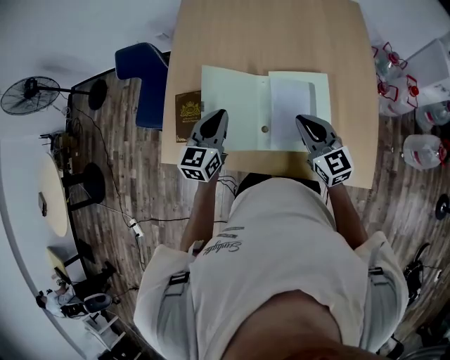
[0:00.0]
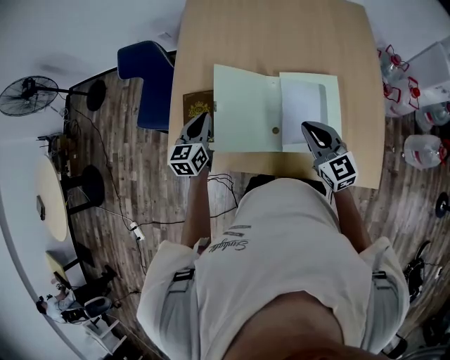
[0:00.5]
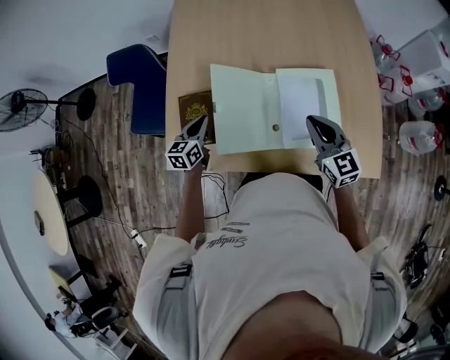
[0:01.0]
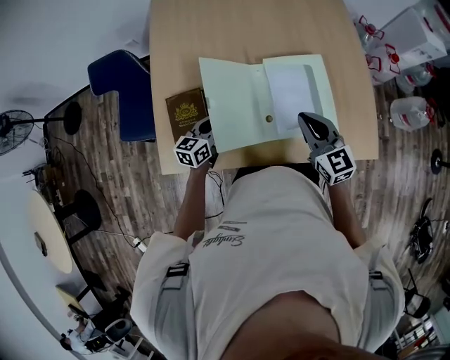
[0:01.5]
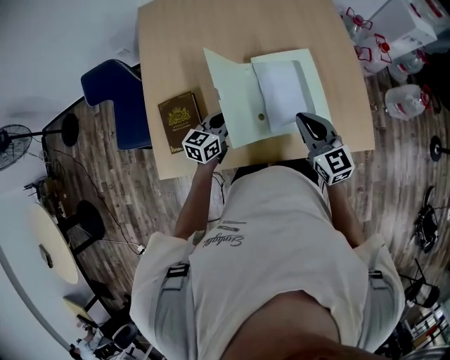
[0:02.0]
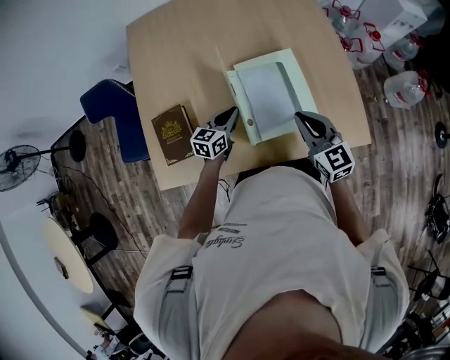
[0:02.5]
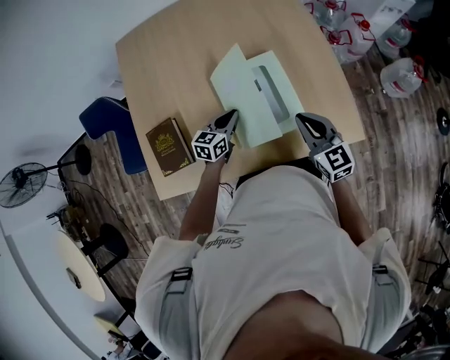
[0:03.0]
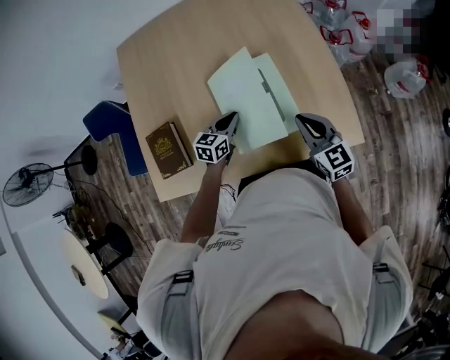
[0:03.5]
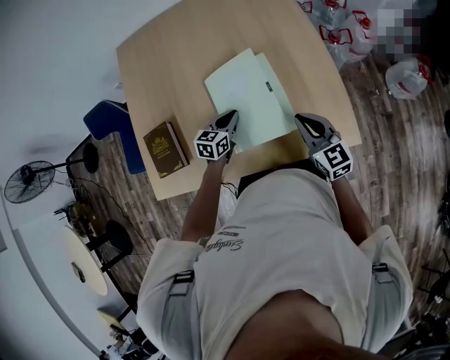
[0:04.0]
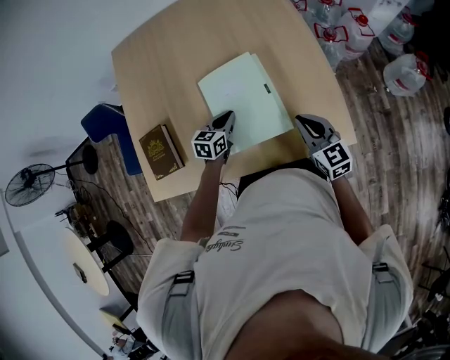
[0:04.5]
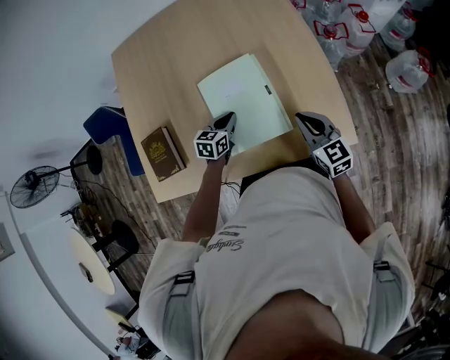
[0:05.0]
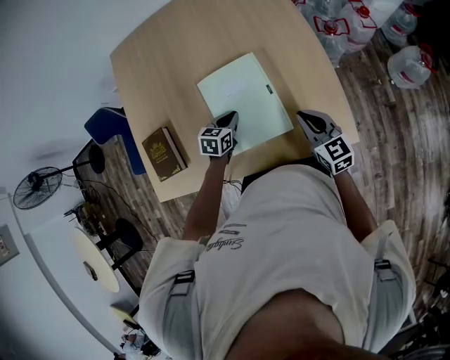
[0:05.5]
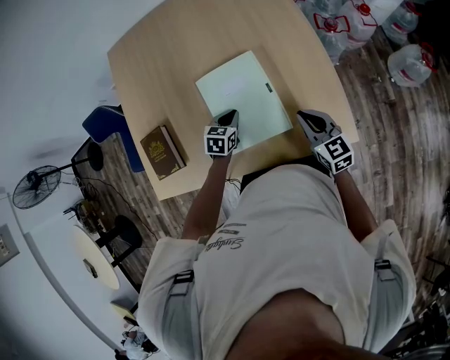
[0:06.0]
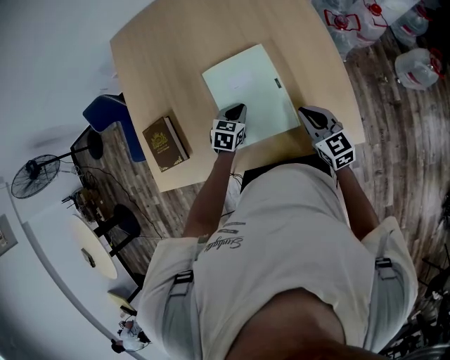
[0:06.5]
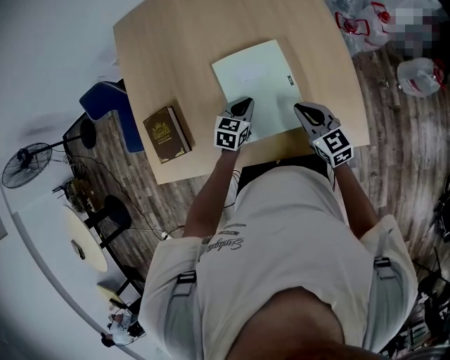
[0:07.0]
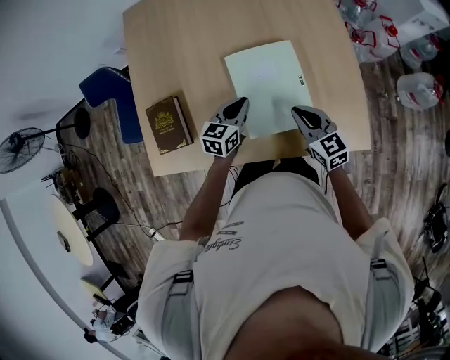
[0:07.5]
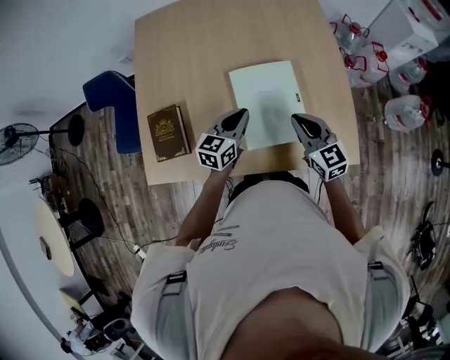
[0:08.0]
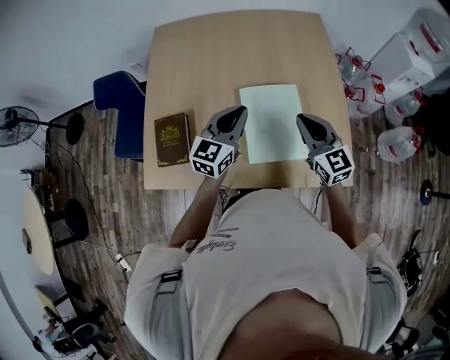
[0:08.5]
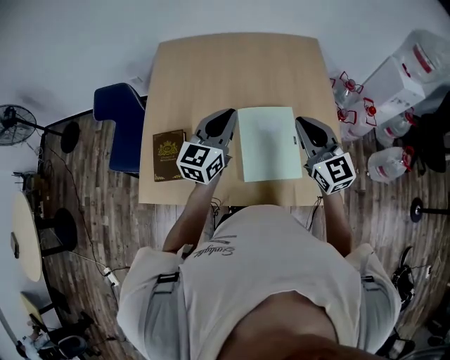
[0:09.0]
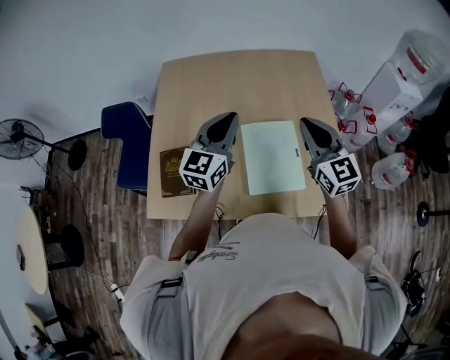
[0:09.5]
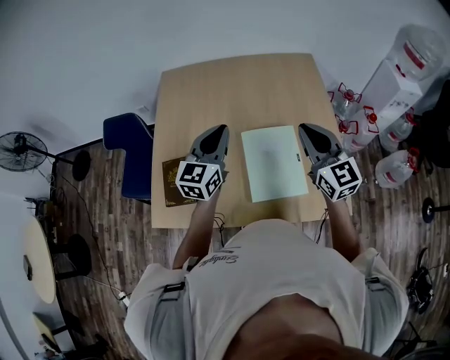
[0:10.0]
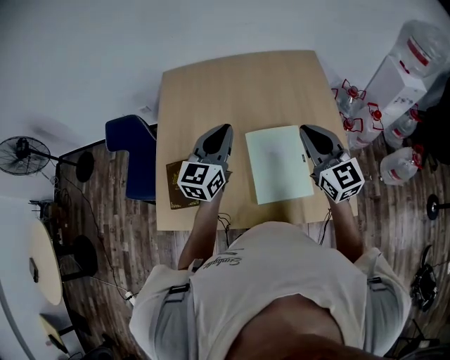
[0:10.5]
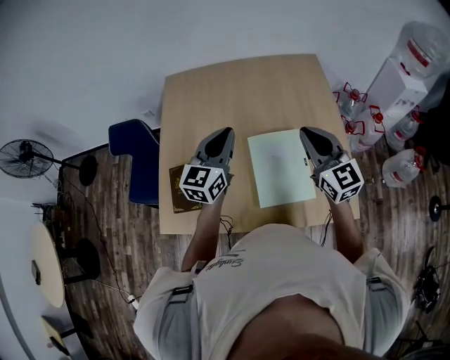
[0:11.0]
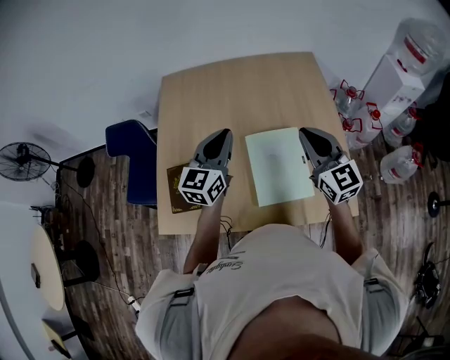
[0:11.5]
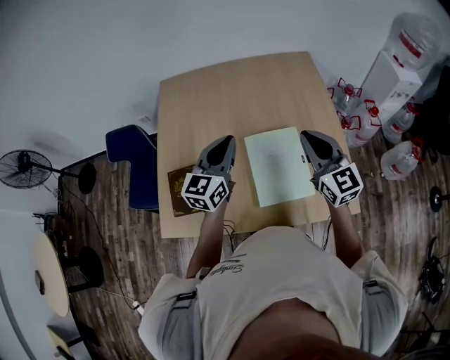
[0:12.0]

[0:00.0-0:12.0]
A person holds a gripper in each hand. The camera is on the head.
0:00.0 to 0:02.0: The right gripper ends up roughly 5 cm from where it was, while the left gripper shifts about 15 cm downward, and swivels approximately 30 degrees.
0:02.0 to 0:04.0: Both grippers move to the right, about 15 cm.
0:04.0 to 0:06.0: The right gripper ends up approximately 5 cm from where it was. The left gripper shifts by roughly 5 cm.
0:06.0 to 0:08.0: The right gripper is displaced to the left and upward by some 15 cm; the left gripper shifts about 15 cm upward, and tips its fingers upward by about 30 degrees.
0:08.0 to 0:10.0: The two grippers go roughly 20 cm upward. The left gripper turns by roughly 20 degrees.
0:10.0 to 0:12.0: The grippers move only a little.

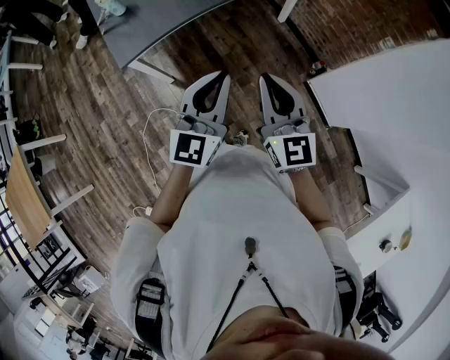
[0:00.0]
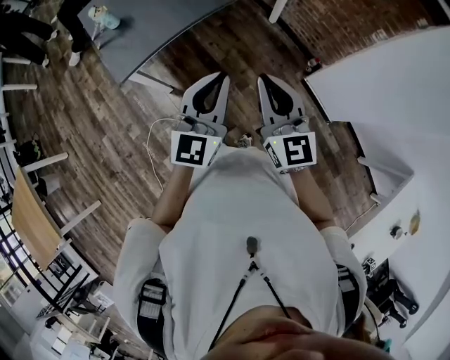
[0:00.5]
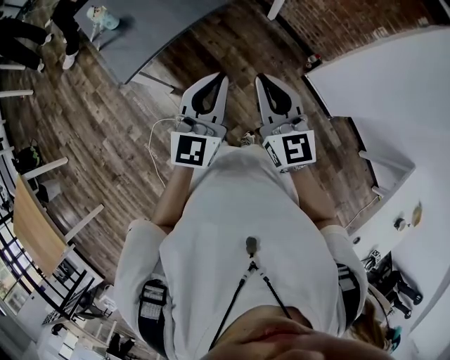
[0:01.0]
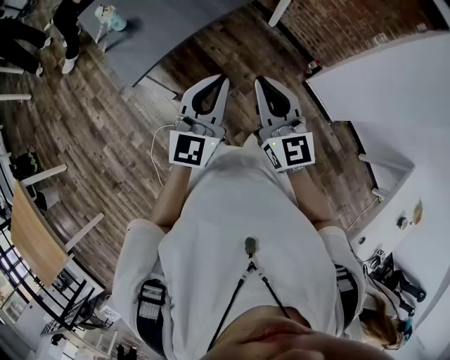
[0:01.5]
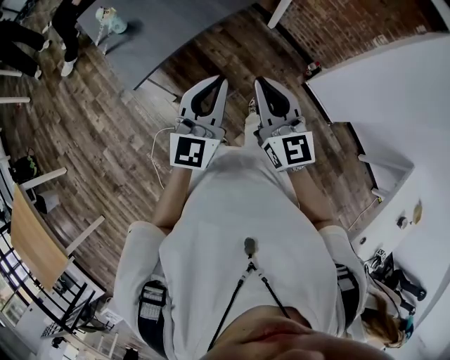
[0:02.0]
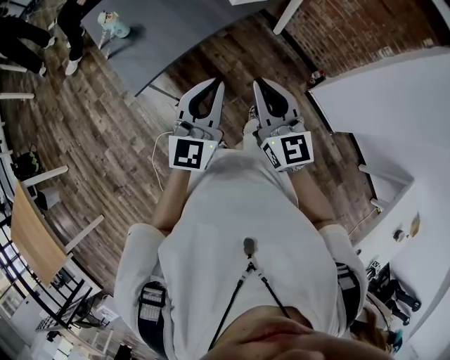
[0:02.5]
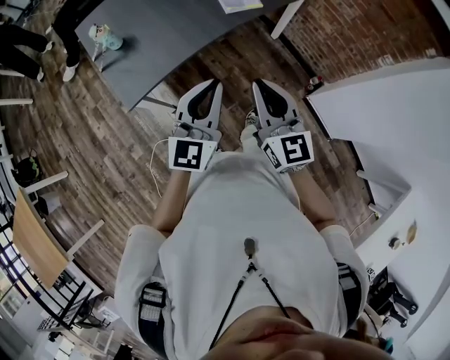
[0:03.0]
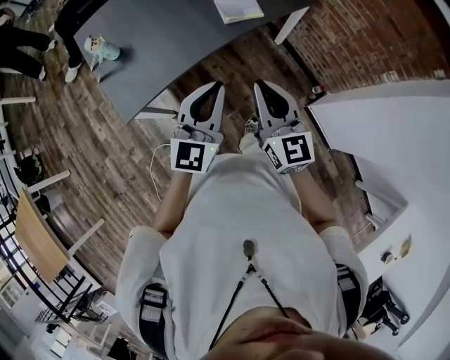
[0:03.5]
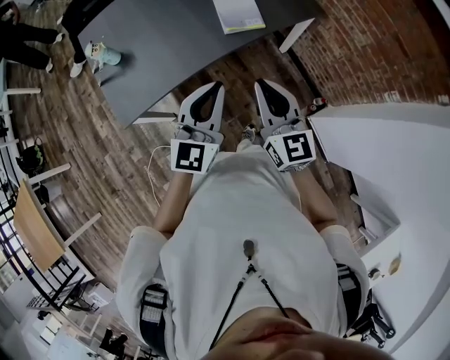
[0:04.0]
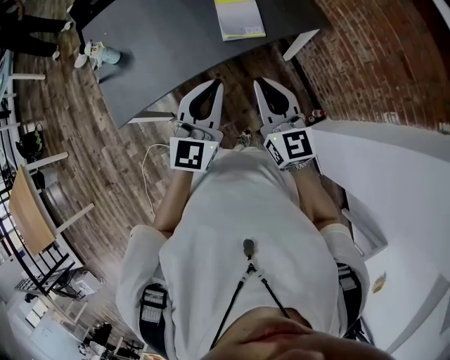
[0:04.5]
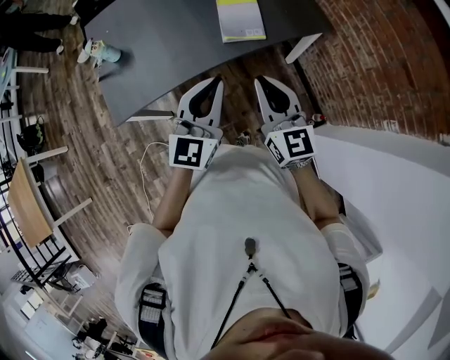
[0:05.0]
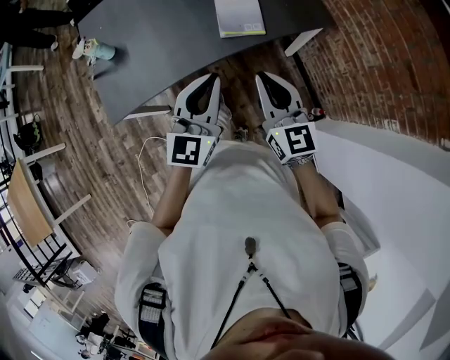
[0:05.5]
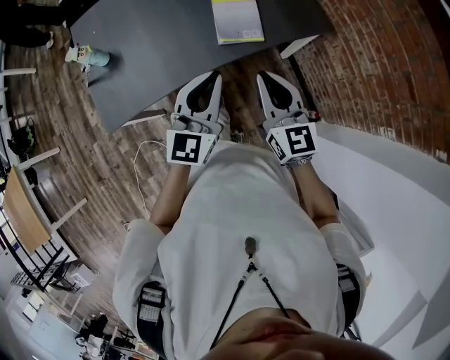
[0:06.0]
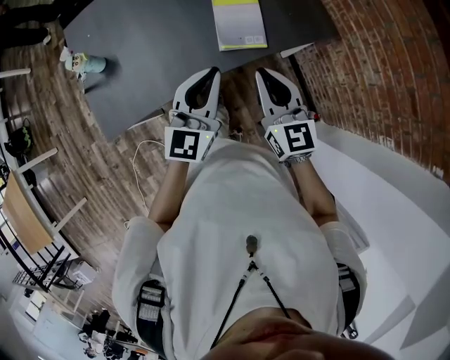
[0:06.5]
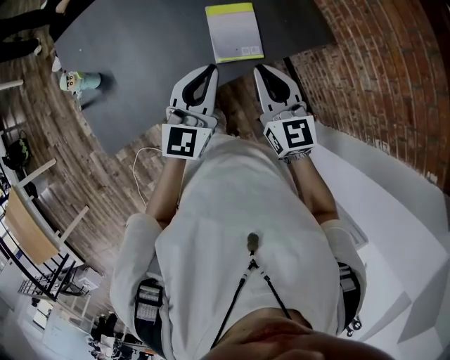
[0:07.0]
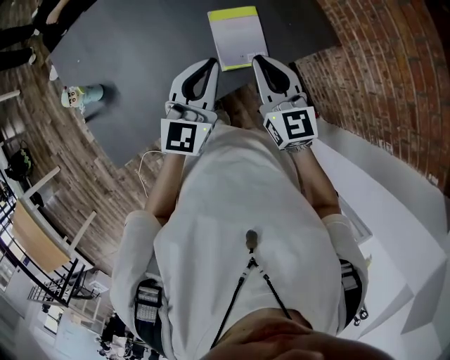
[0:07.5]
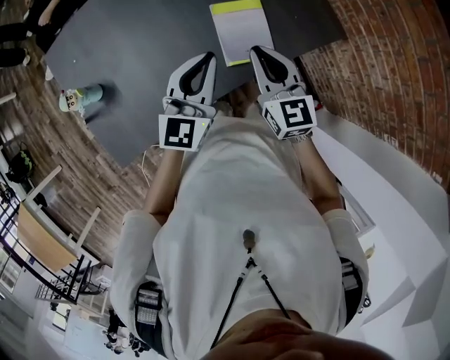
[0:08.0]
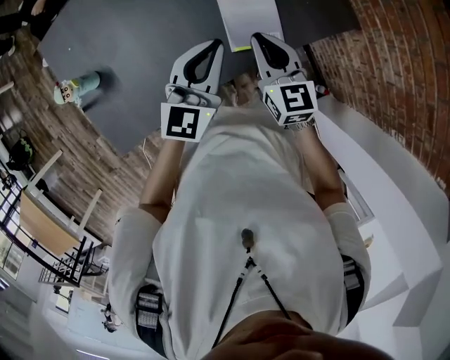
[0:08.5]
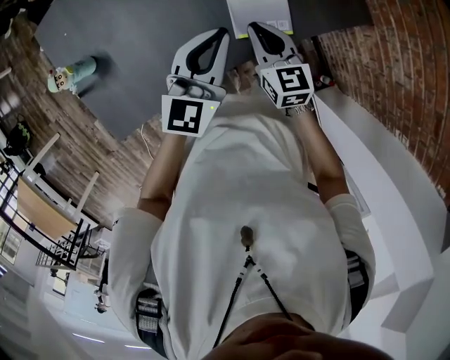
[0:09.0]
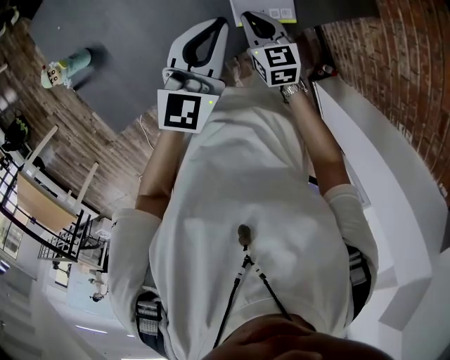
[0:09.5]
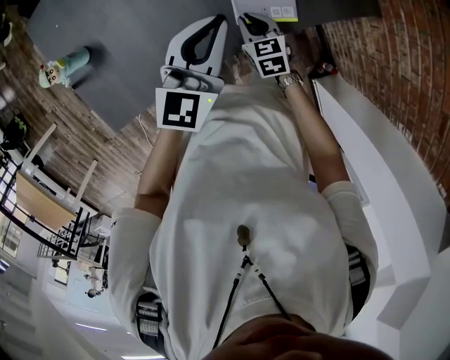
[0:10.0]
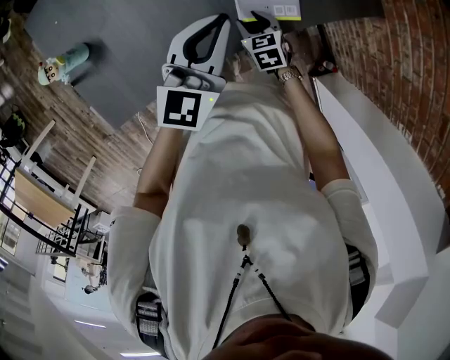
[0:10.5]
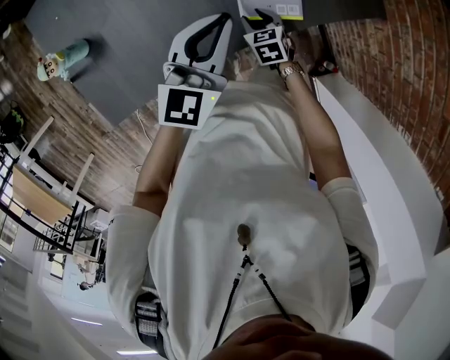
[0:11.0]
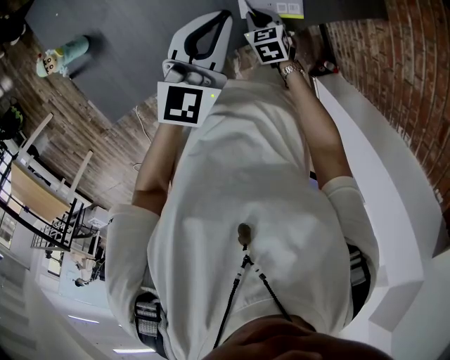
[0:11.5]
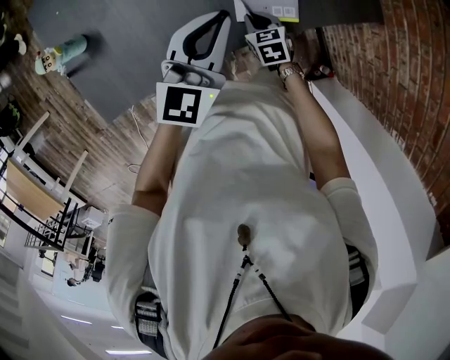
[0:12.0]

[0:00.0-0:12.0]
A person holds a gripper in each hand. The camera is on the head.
0:00.0 to 0:02.0: Both grippers travel together to the left, some 20 cm.
0:02.0 to 0:04.0: Both grippers travel together forward and to the right, about 35 cm.
0:04.0 to 0:06.0: Both grippers move forward and to the right, some 20 cm.
0:06.0 to 0:08.0: The grippers both shift forward by approximately 25 cm.
0:08.0 to 0:10.0: The left gripper travels downward by roughly 5 cm, while the right gripper travels downward by about 25 cm, and changes its angle by approximately 30 degrees.
0:10.0 to 0:12.0: The right gripper changes place by roughly 5 cm, and opens and closes again.

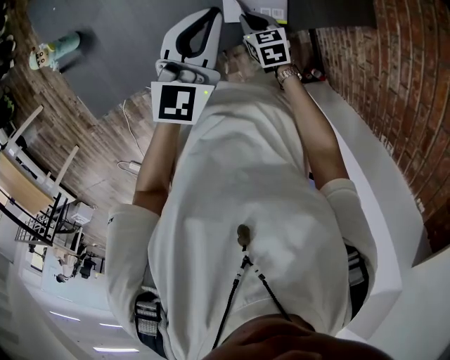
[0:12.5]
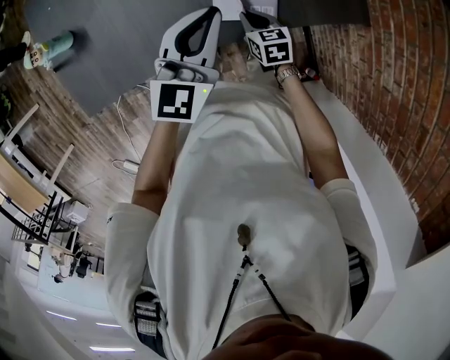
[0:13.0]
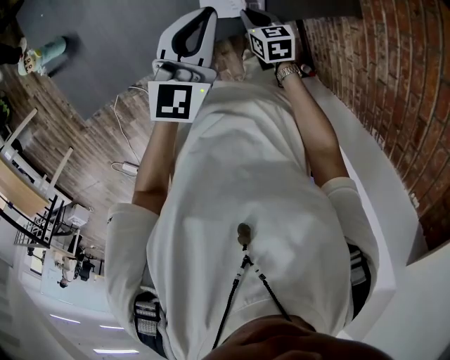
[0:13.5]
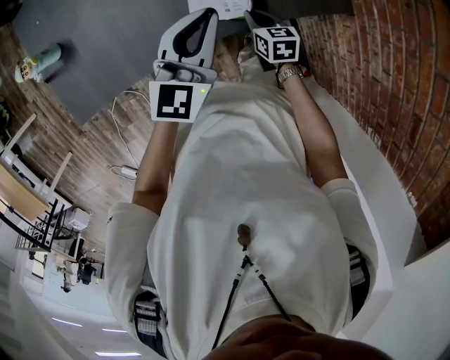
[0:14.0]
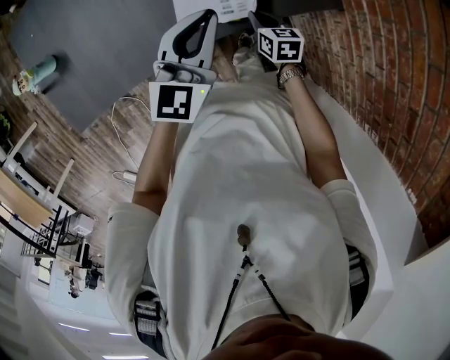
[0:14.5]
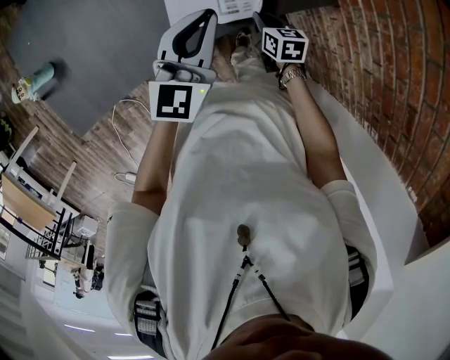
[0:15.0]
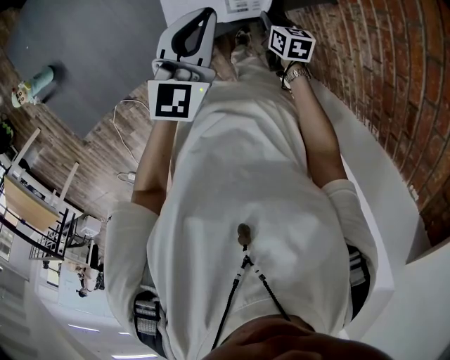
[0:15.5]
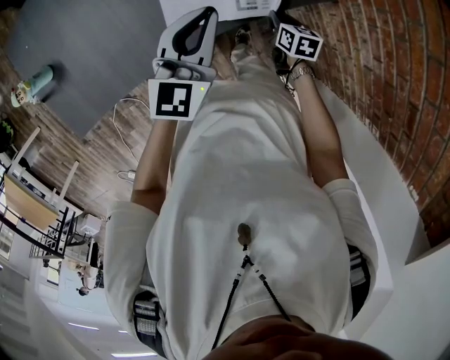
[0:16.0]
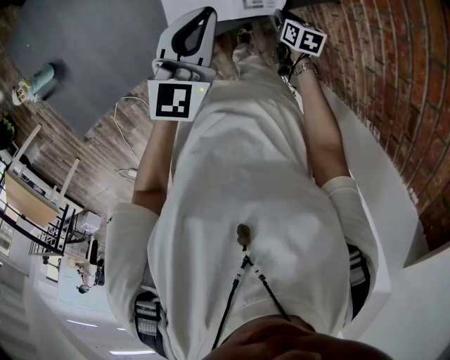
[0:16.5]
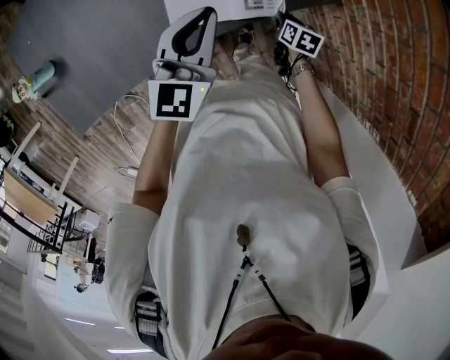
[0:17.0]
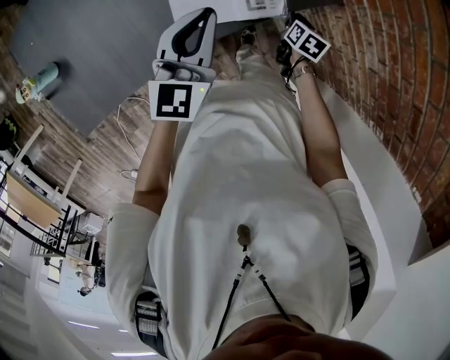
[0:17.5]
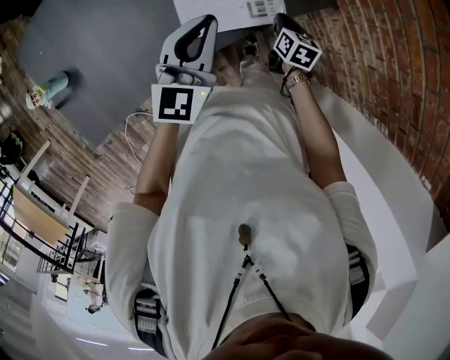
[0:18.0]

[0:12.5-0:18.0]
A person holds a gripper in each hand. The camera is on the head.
0:12.5 to 0:14.5: Both grippers travel together to the right, roughly 15 cm.
0:14.5 to 0:16.0: The right gripper is displaced to the right by about 10 cm.
0:16.0 to 0:18.0: The right gripper shifts roughly 5 cm upward. Meanwhile the left gripper shifts by roughly 5 cm.
